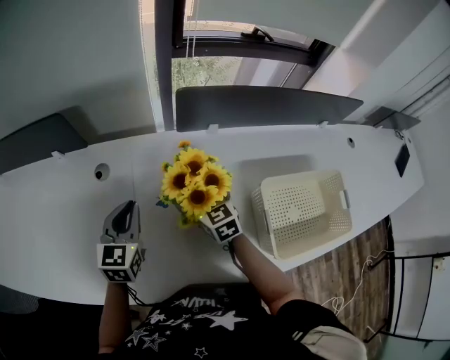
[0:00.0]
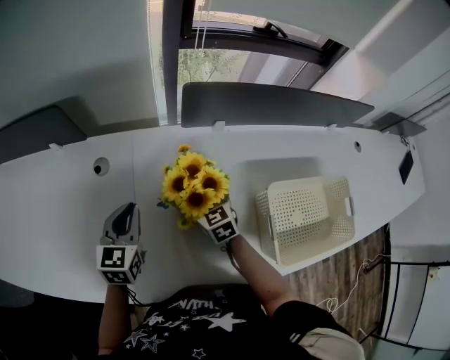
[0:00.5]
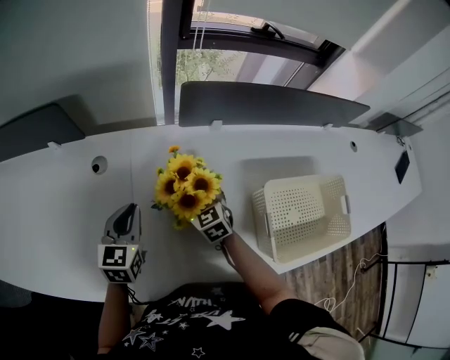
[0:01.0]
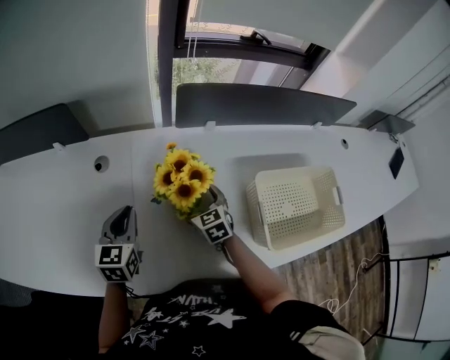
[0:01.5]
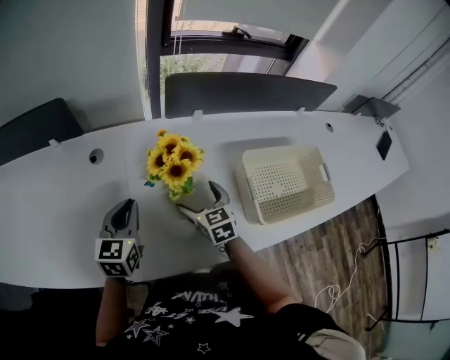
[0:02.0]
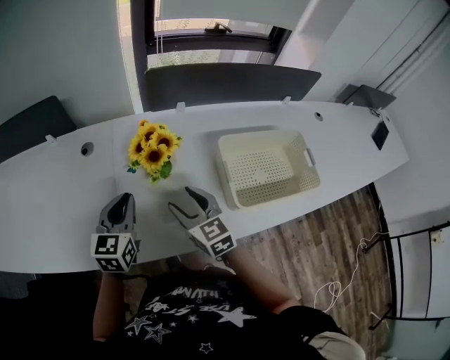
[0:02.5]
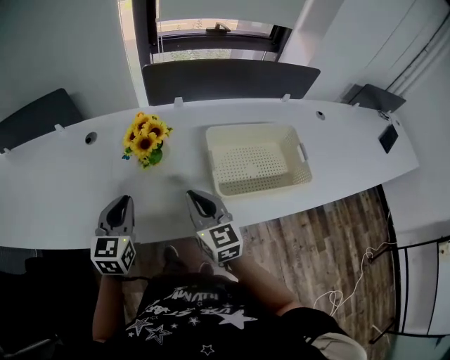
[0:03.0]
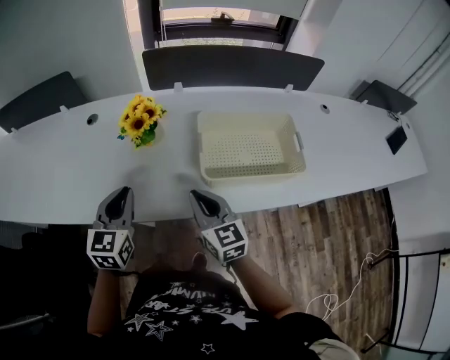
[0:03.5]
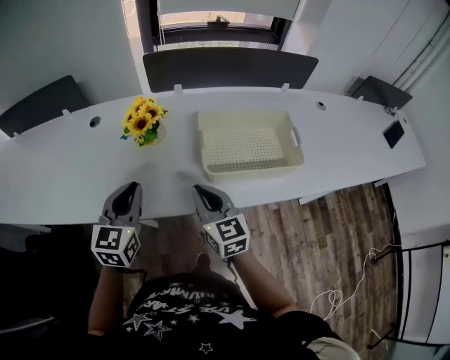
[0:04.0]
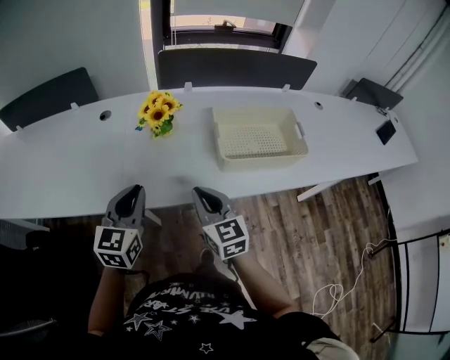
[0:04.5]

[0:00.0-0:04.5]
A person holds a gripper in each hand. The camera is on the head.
0:00.0 to 0:02.0: The grippers both shift backward by approximately 10 cm.
0:02.0 to 0:04.5: The right gripper shifts roughly 30 cm backward and upward, and closes its fingers; the left gripper is displaced backward by some 25 cm.

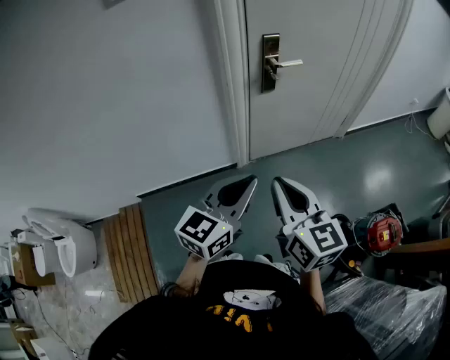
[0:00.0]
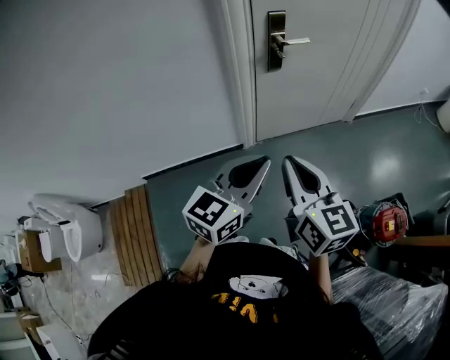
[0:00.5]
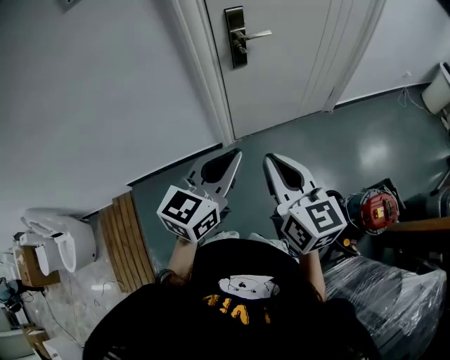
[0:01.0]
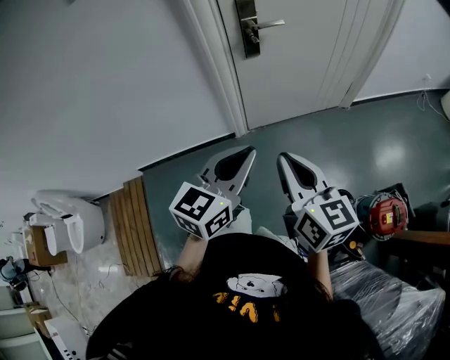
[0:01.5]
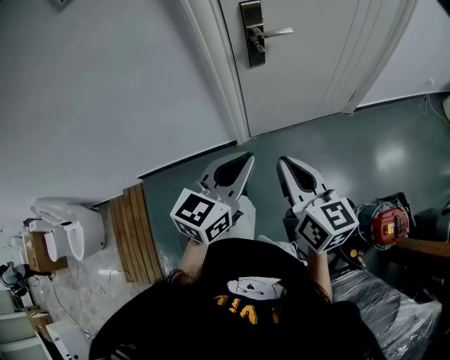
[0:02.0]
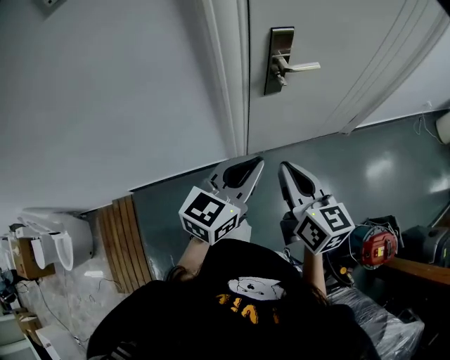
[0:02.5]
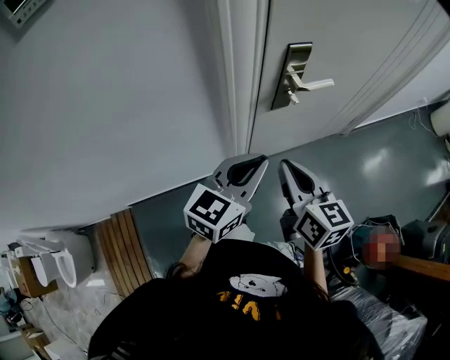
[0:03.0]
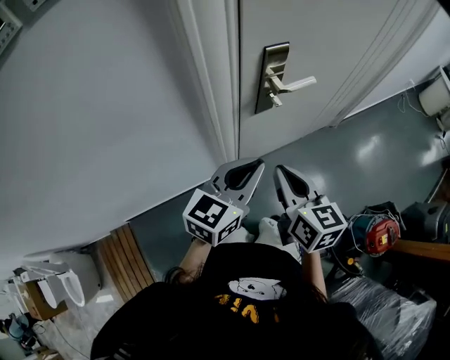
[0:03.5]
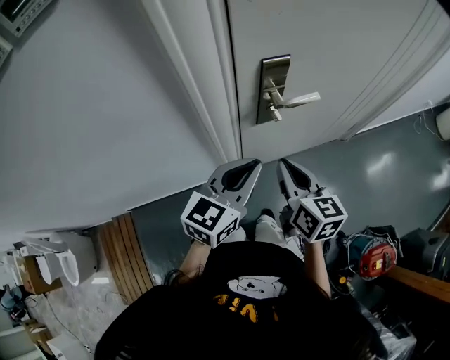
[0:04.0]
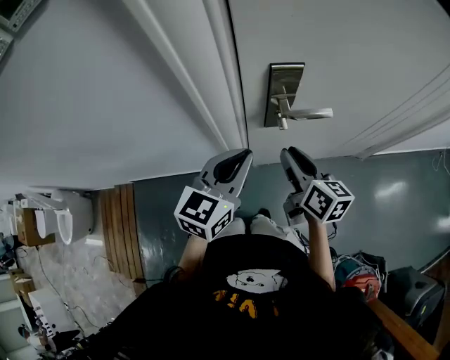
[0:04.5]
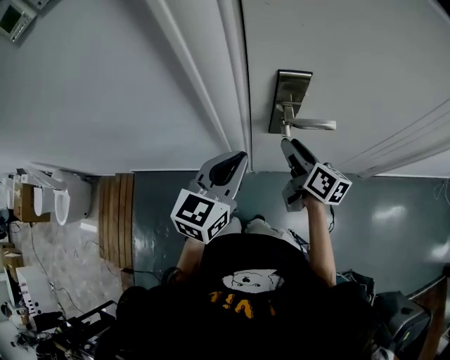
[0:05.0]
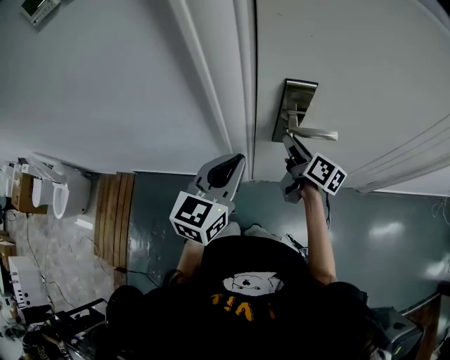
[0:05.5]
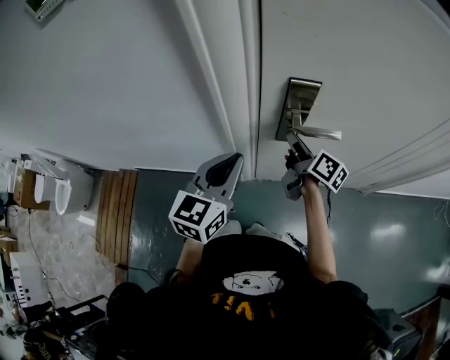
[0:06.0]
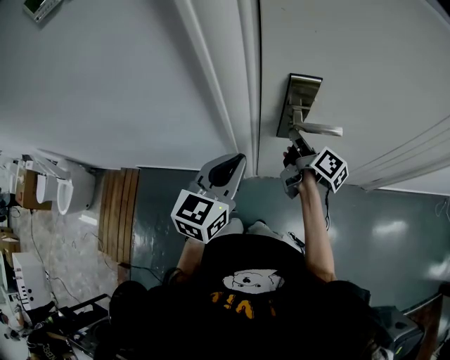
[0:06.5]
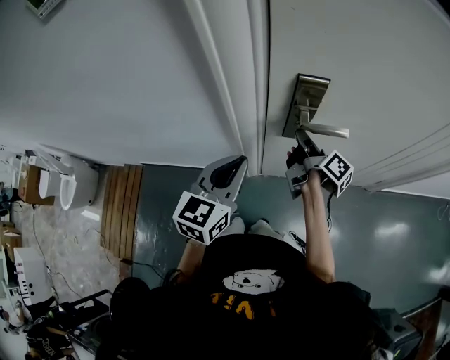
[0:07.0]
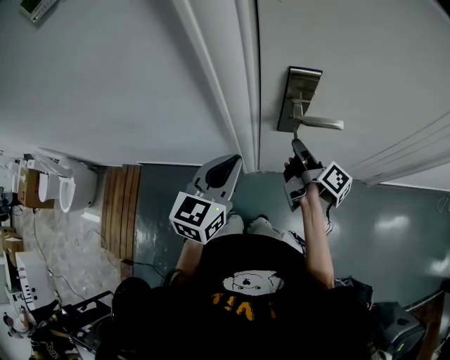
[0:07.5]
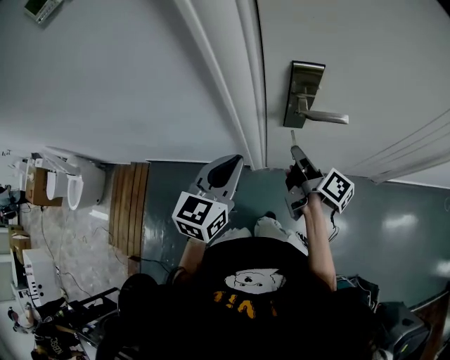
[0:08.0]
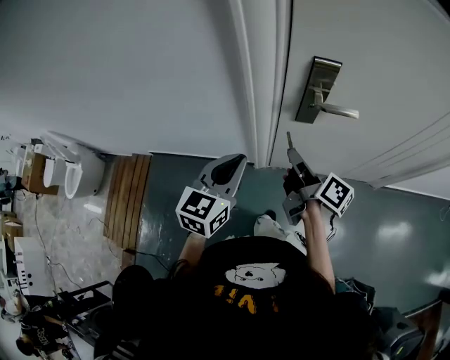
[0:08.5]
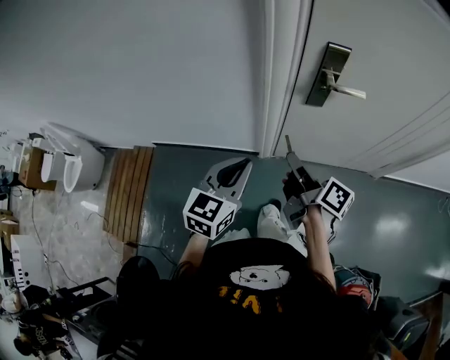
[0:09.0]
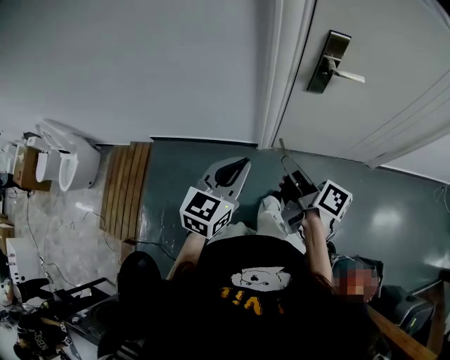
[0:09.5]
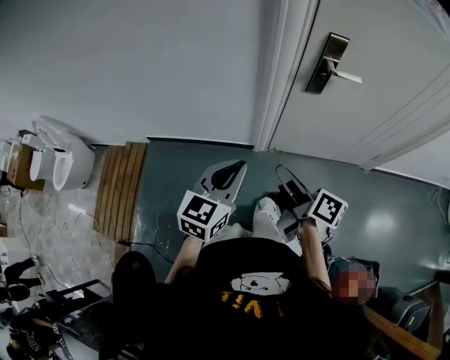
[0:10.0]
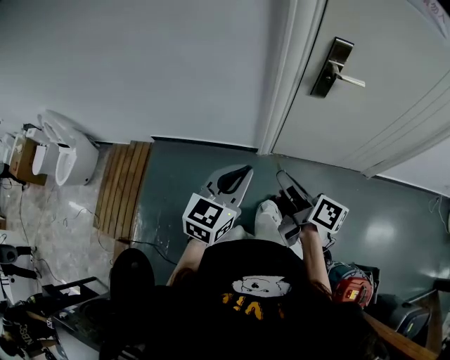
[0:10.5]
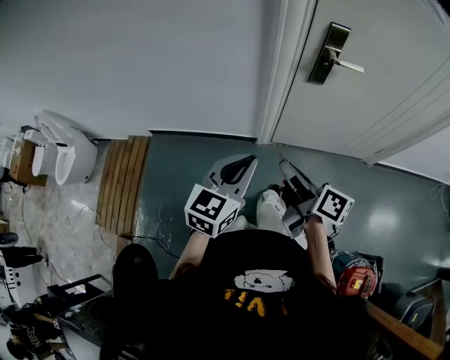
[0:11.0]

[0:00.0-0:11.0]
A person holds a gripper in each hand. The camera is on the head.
0:00.0 to 0:02.0: The right gripper goes approximately 15 cm to the right, forward and downward; the left gripper travels forward and to the right by some 10 cm.
0:02.0 to 0:03.5: The right gripper heads forward and to the left, covering roughly 25 cm; the left gripper is displaced forward by about 25 cm.
0:03.5 to 0:05.5: The right gripper shifts by about 25 cm, changes its angle by roughly 40 degrees, and opens up; the left gripper shifts by about 5 cm, and changes its angle by roughly 40 degrees.
0:05.5 to 0:07.5: The right gripper swivels approximately 30 degrees, and closes up.
0:07.5 to 0:09.0: Both grippers travel together backward and to the left, approximately 20 cm.
0:09.0 to 0:11.0: The right gripper moves backward and to the left, approximately 15 cm. Meanwhile the left gripper travels backward by about 10 cm.

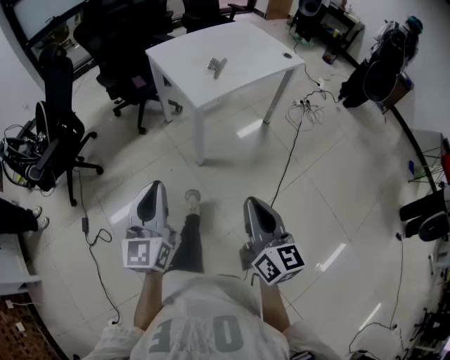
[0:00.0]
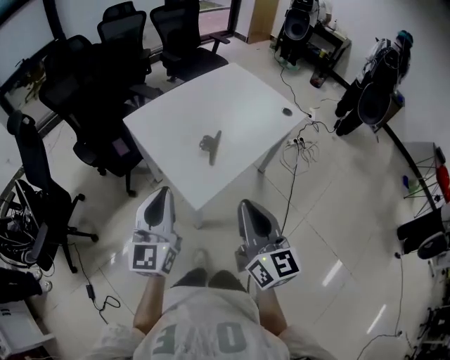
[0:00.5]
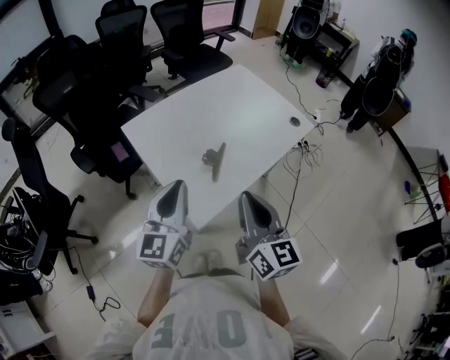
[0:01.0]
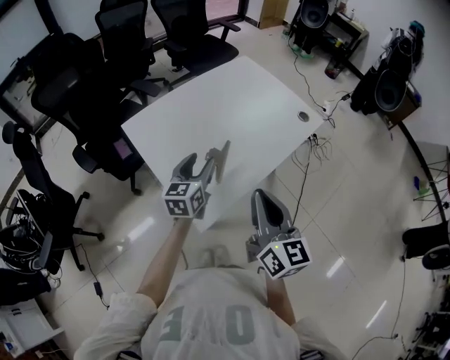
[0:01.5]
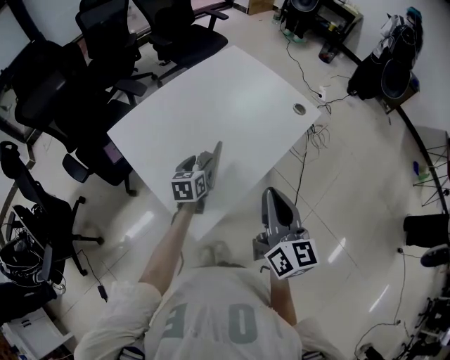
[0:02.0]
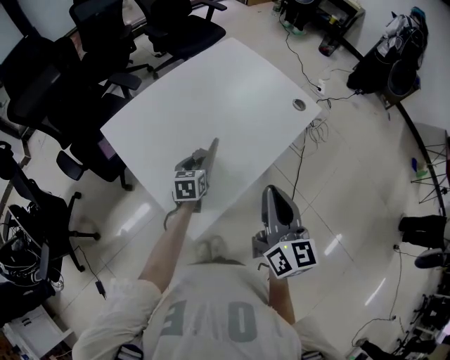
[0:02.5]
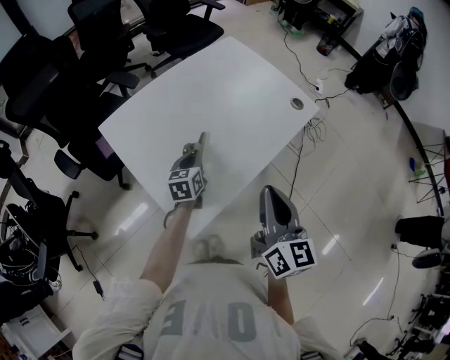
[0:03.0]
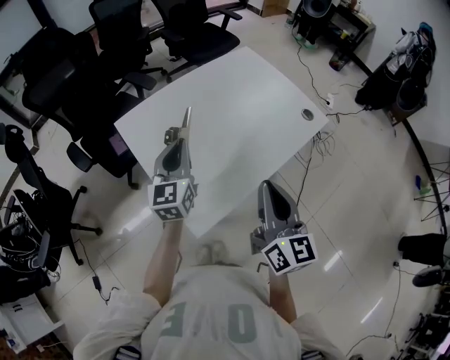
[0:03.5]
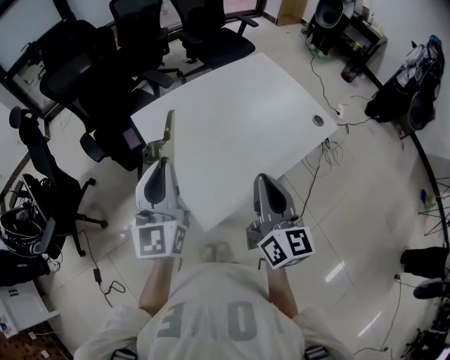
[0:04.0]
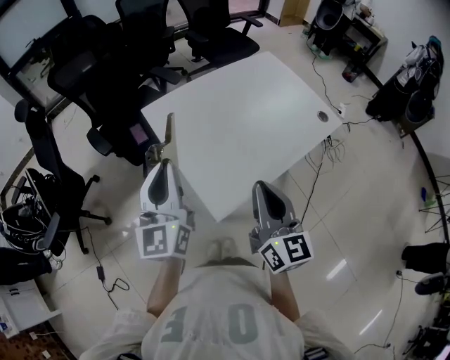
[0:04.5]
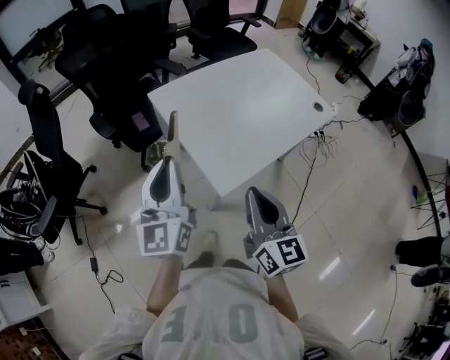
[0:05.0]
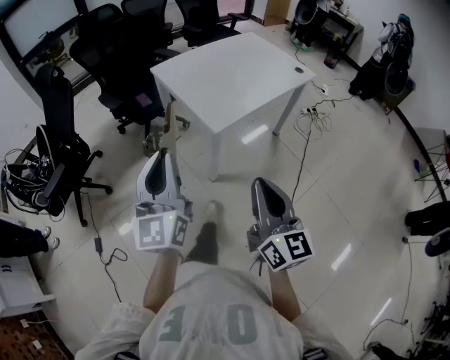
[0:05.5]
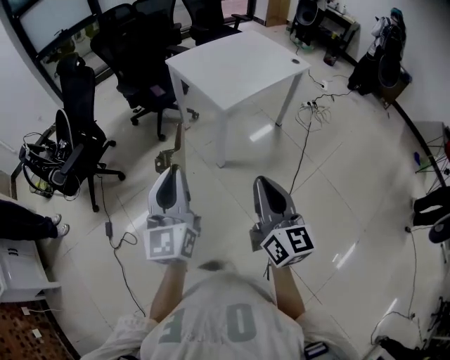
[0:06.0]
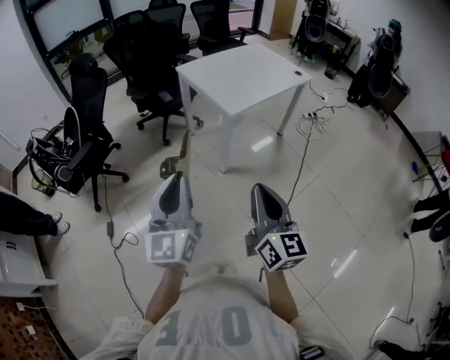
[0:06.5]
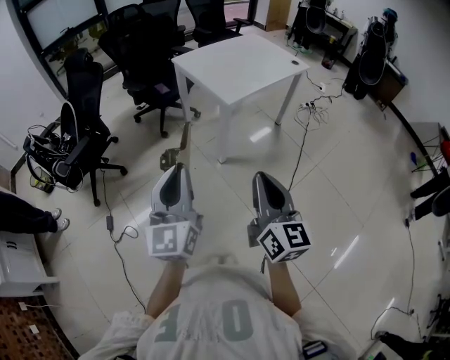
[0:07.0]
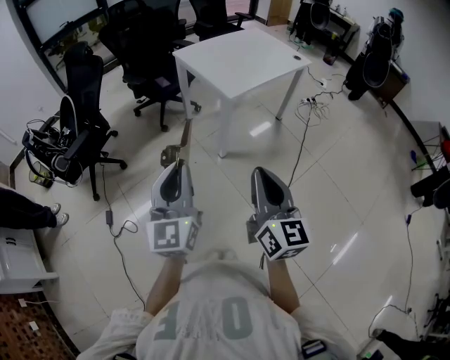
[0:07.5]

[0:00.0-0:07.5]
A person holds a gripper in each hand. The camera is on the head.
0:00.0 to 0:02.0: The pair of grippers is taken forward, about 50 cm. The left gripper tips its fingers downward by some 40 degrees, and opens up.
0:02.0 to 0:04.0: The left gripper shifts roughly 35 cm upward, to the left and backward, tips its fingers upward by some 40 degrees, and closes up; the right gripper travels to the left by roughly 5 cm.
0:04.0 to 0:05.5: The grippers both shift backward by some 35 cm.
0:05.5 to 0:07.5: The left gripper moves backward, roughly 25 cm, while the right gripper moves backward and to the left, some 20 cm.

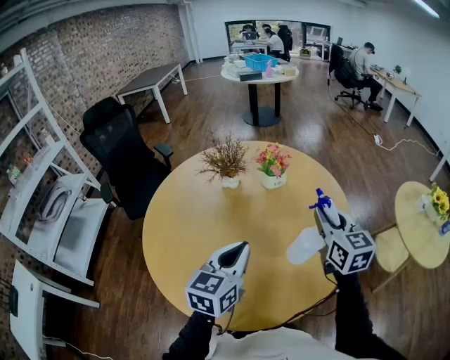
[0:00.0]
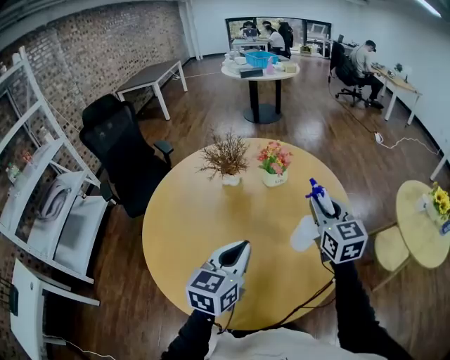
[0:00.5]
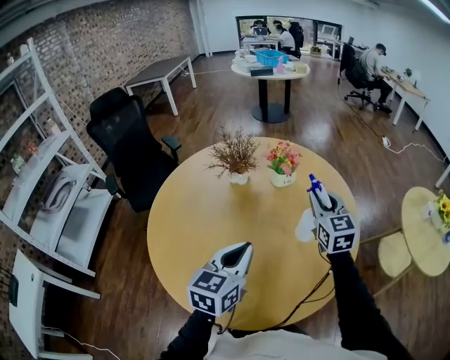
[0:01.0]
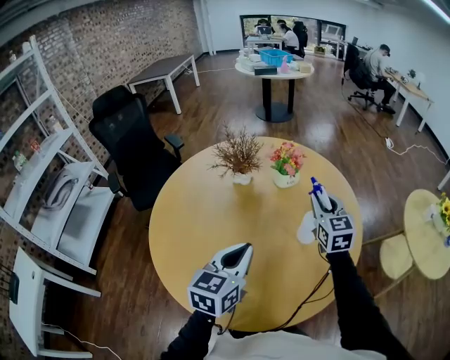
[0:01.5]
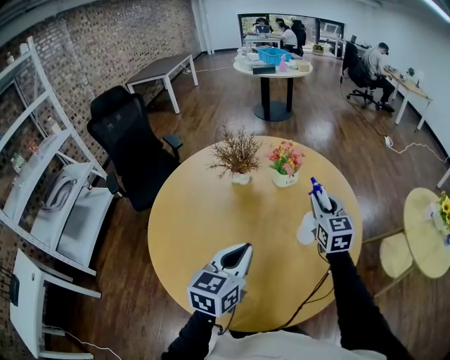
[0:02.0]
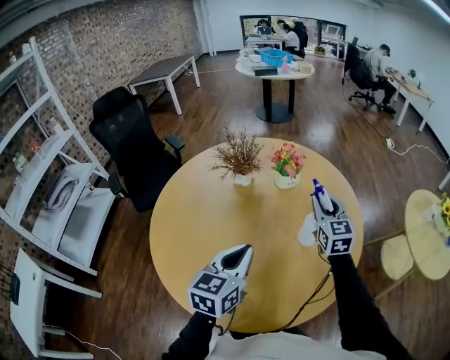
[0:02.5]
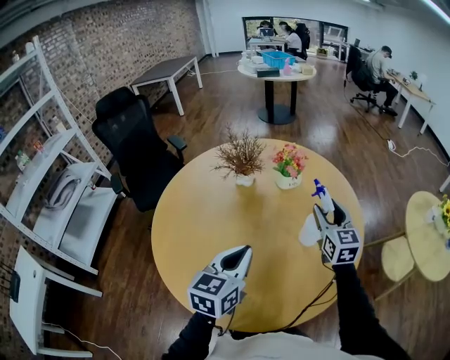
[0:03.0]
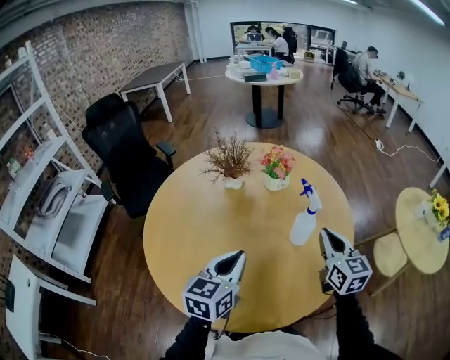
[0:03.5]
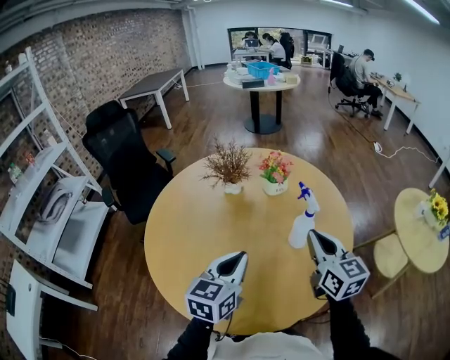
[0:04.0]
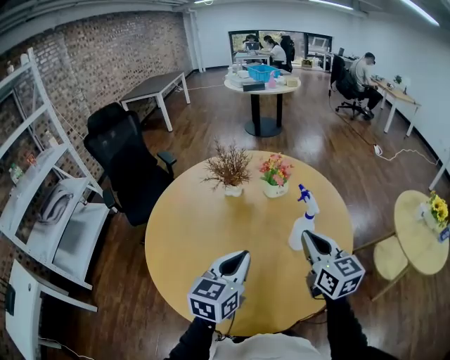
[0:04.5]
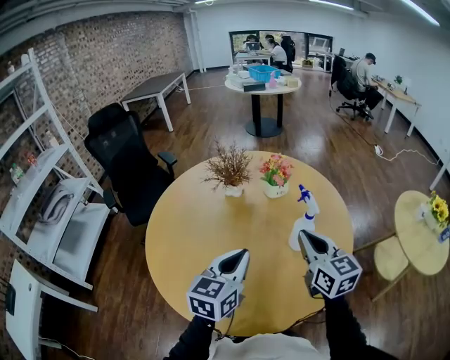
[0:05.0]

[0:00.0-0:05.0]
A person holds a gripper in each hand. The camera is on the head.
0:00.0 to 0:02.5: The right gripper heads forward and downward, covering roughly 15 cm.
0:02.5 to 0:05.0: The right gripper shifts some 15 cm backward, and opens and closes again.
